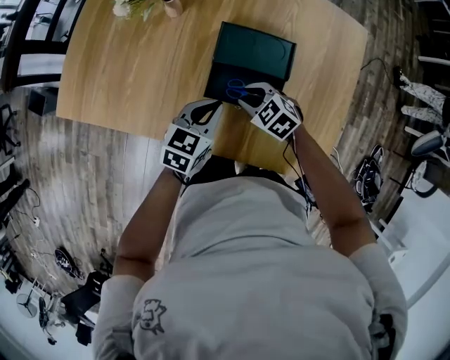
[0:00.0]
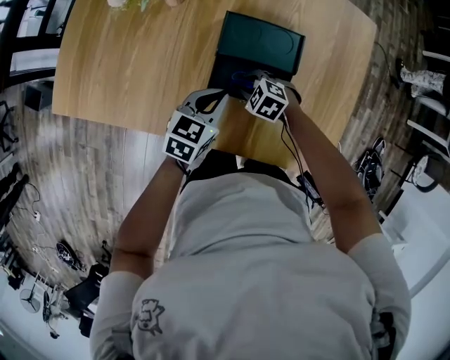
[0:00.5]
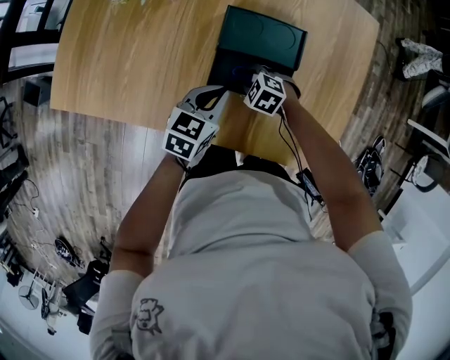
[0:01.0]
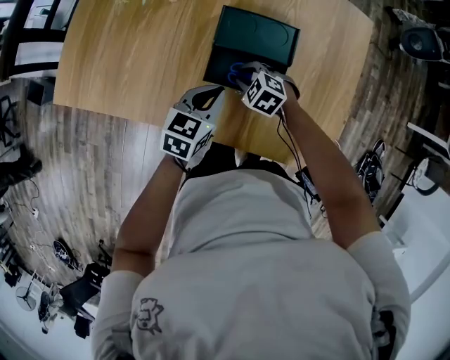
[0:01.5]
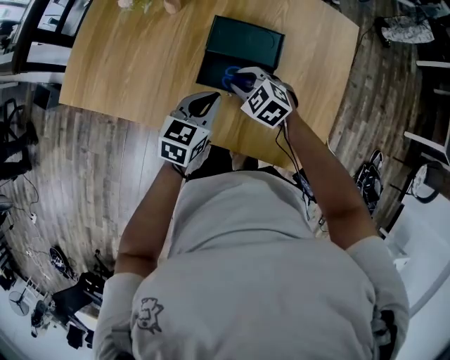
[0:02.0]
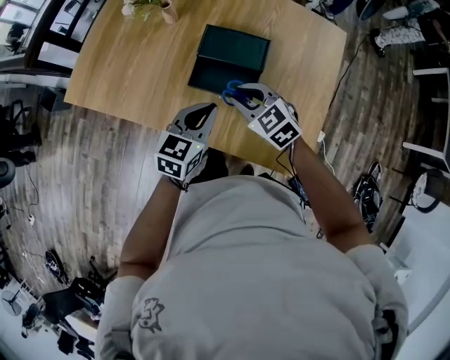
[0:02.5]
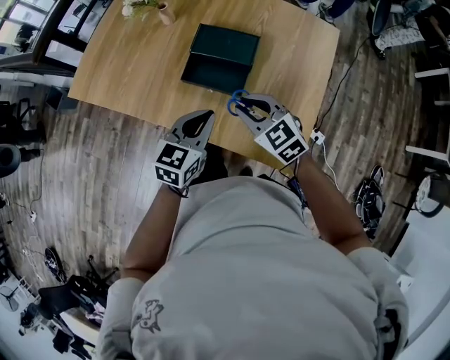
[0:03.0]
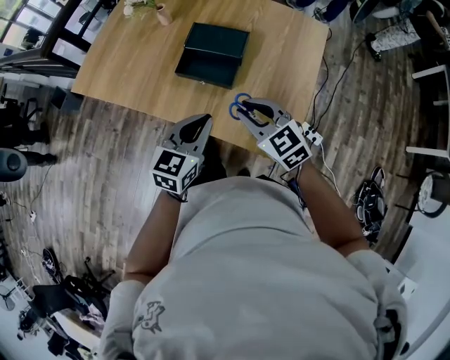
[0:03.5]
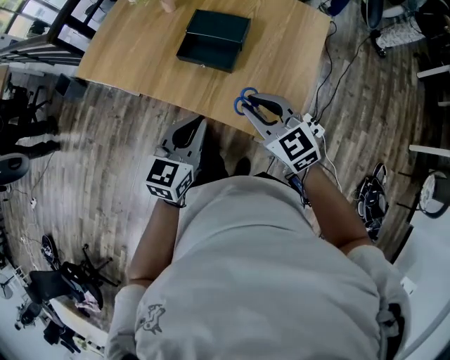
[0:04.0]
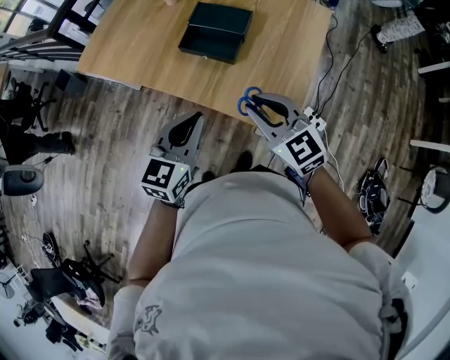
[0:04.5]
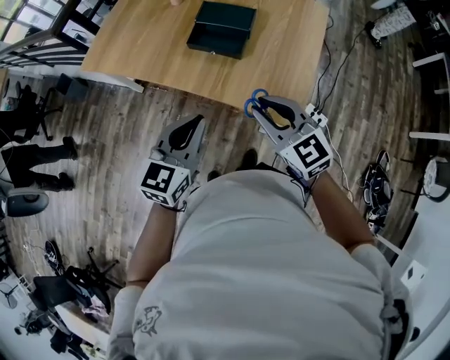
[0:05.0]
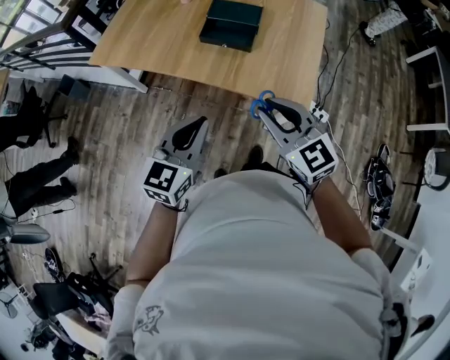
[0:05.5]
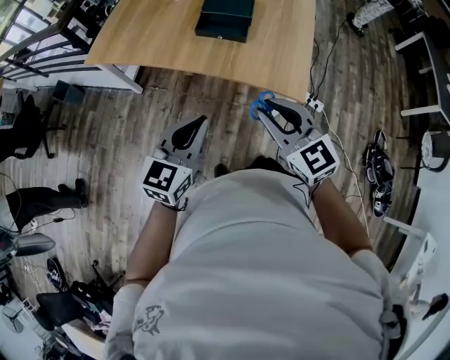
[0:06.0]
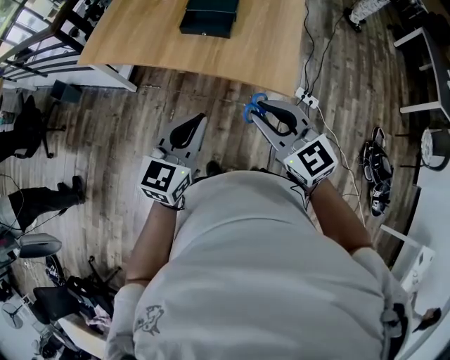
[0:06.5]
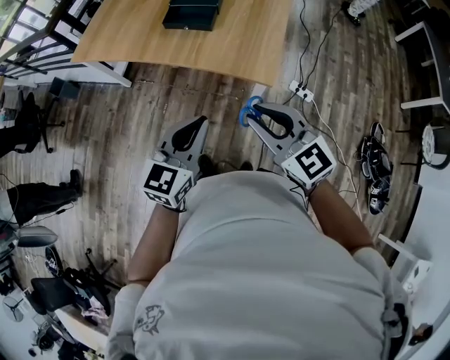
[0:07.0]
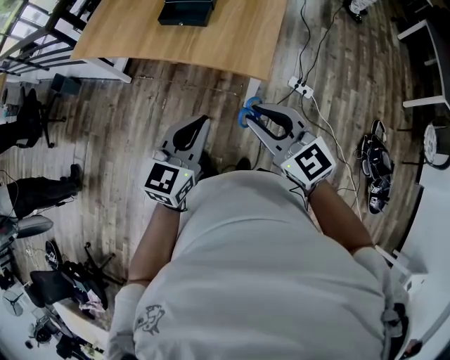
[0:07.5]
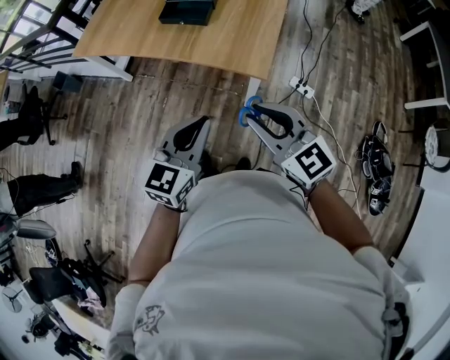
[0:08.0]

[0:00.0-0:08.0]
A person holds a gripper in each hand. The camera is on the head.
0:00.0 to 0:02.0: The right gripper goes downward and returns, some 10 cm each way.
0:02.0 to 0:04.0: The left gripper heads backward and upward, covering about 30 cm, while the right gripper is displaced backward, upward and to the right by about 35 cm, and rotates approximately 30 degrees.
0:04.0 to 0:06.0: The two grippers go about 25 cm backward and to the left.
0:06.0 to 0:08.0: Both grippers move to the right and backward, about 20 cm.

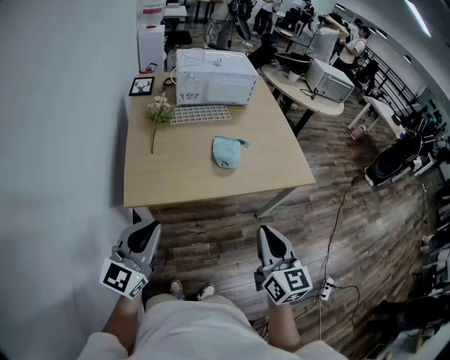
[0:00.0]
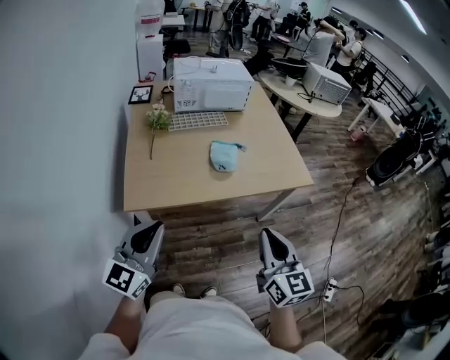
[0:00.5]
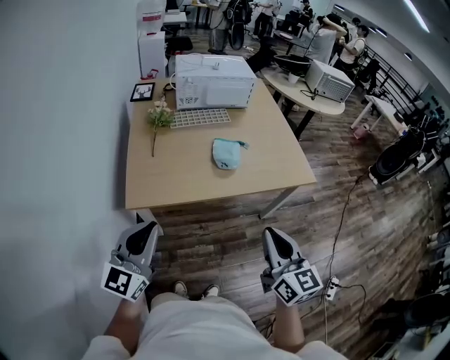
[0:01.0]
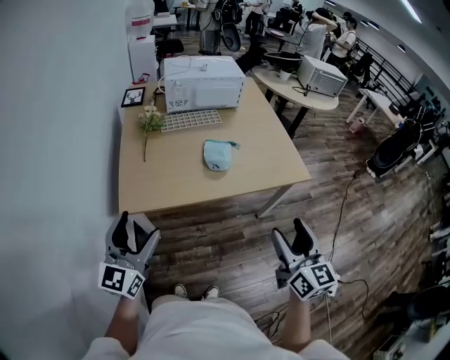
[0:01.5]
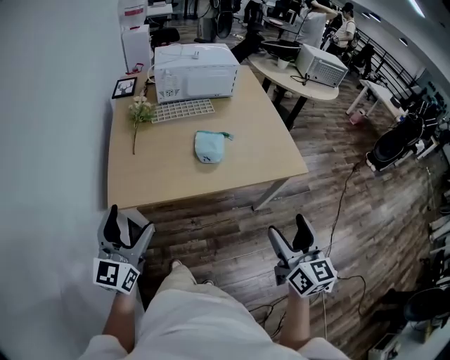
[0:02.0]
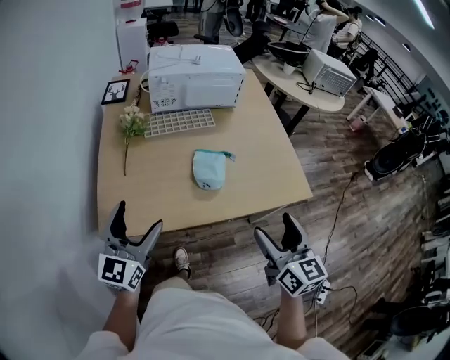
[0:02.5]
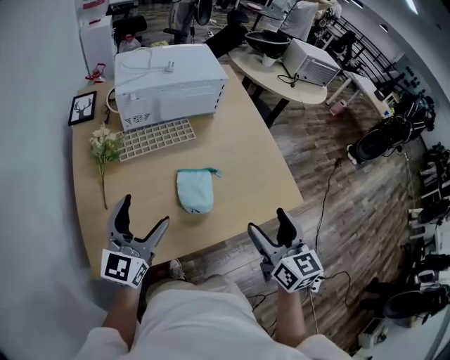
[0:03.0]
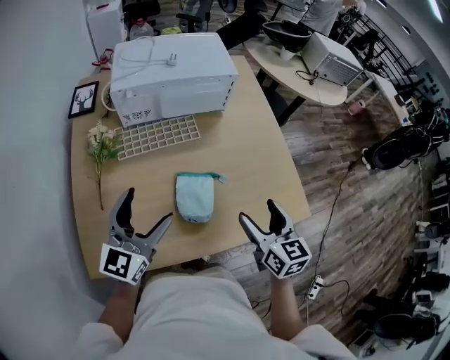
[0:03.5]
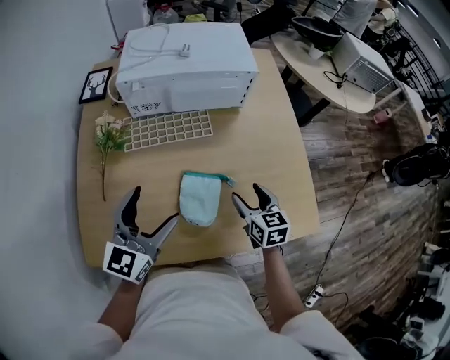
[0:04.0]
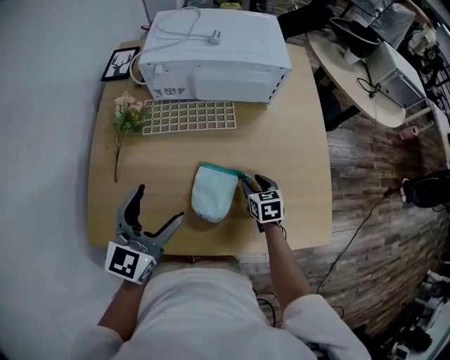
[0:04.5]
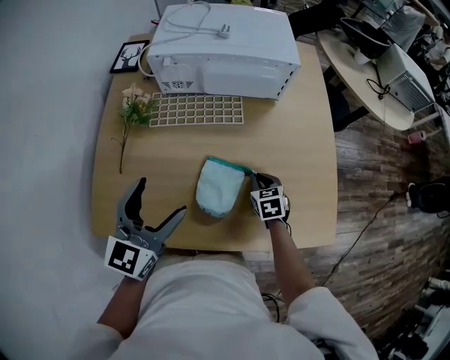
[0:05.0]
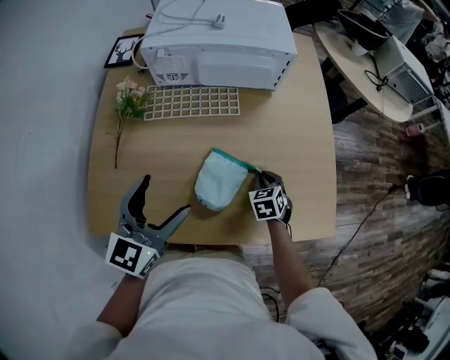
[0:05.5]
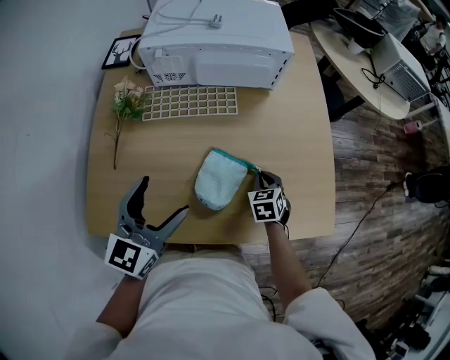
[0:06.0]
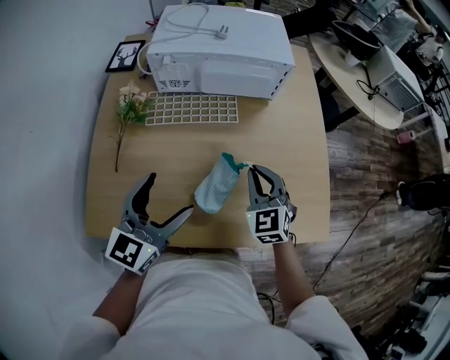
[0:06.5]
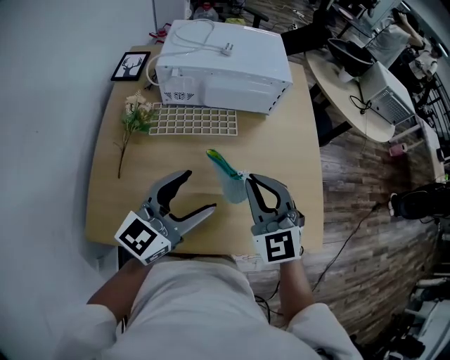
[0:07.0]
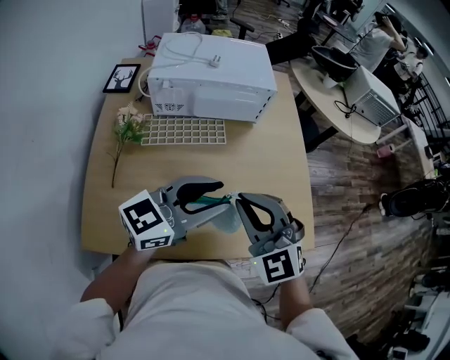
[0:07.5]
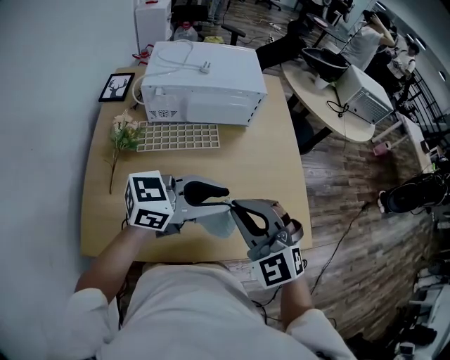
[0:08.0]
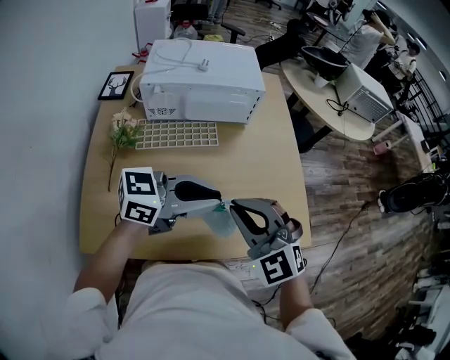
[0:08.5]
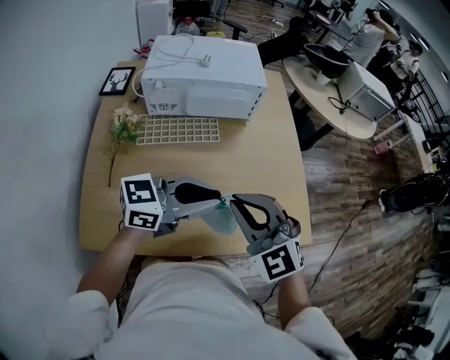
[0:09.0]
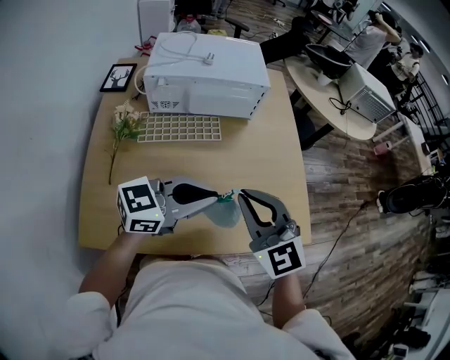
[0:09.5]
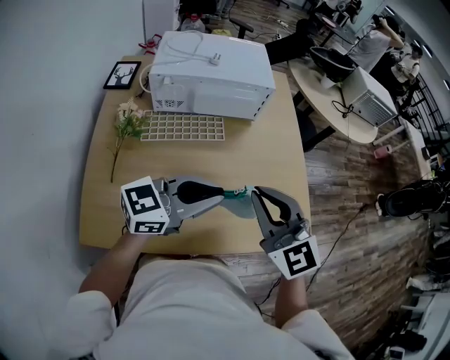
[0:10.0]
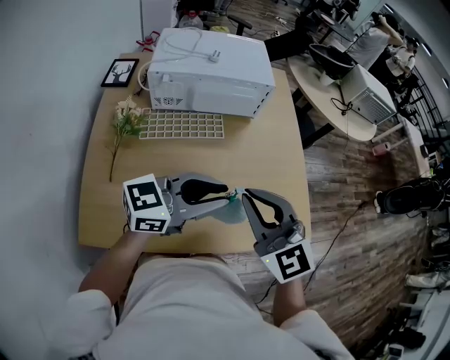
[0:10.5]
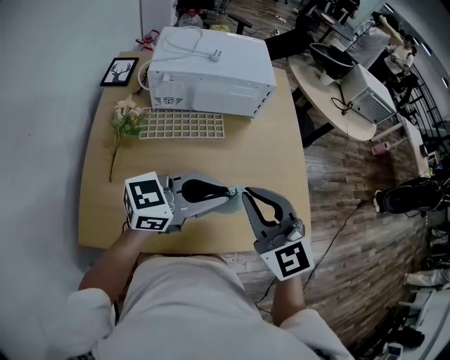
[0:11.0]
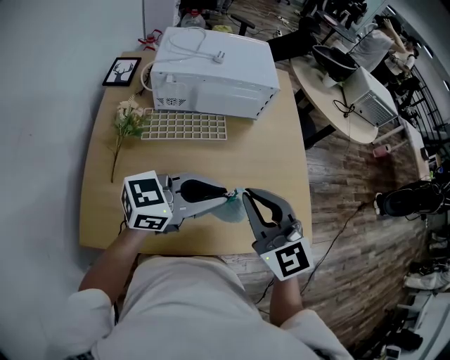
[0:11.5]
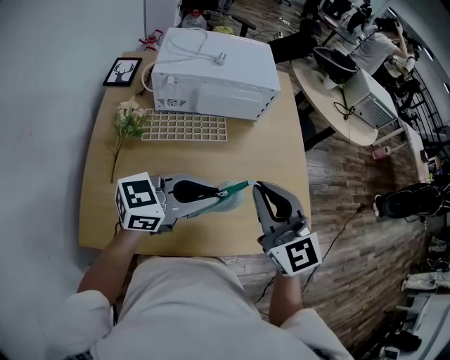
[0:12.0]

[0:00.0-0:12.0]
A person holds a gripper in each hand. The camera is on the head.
0:00.0 to 0:02.0: The right gripper goes some 15 cm to the right, and opens. The left gripper opens up.
0:02.0 to 0:04.0: The two grippers travel together, forward, about 40 cm. The right gripper shifts some 20 cm downward, and changes its angle by about 30 degrees.
0:04.0 to 0:06.0: The right gripper travels downward by about 10 cm, swivels about 30 degrees, and closes up.
0:06.0 to 0:08.0: The left gripper moves to the right and upward, approximately 15 cm, swivels approximately 60 degrees, and closes up, while the right gripper is displaced upward by approximately 30 cm, and swivels about 60 degrees.
0:08.0 to 0:10.0: The right gripper changes its angle by approximately 20 degrees.
0:10.0 to 0:12.0: The grippers move only a little.

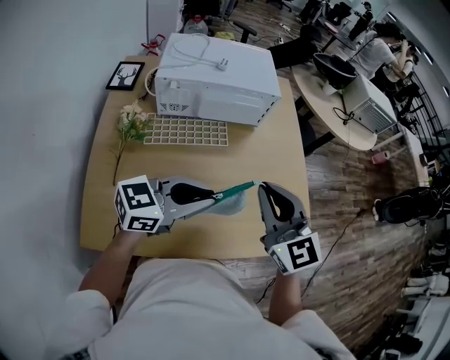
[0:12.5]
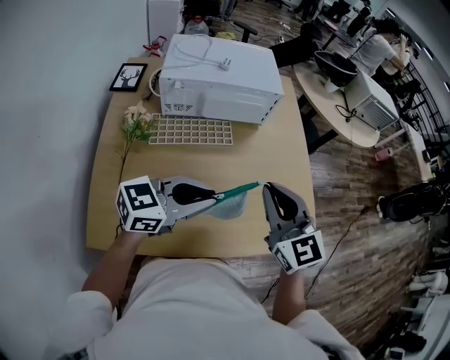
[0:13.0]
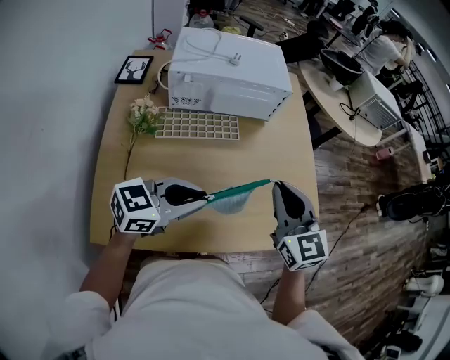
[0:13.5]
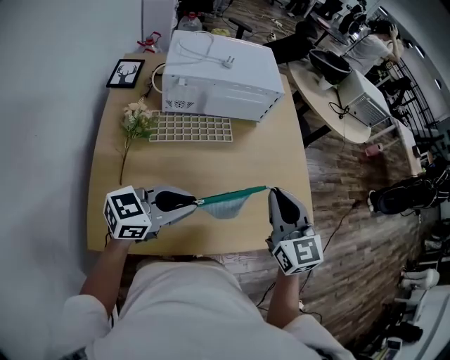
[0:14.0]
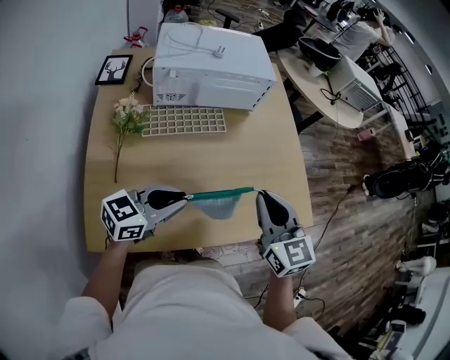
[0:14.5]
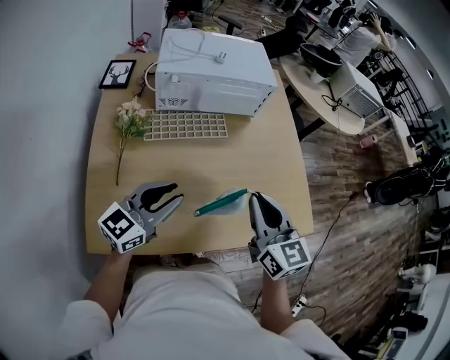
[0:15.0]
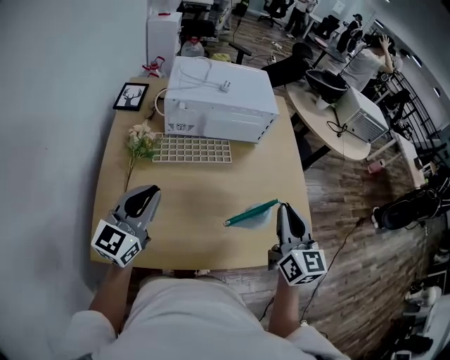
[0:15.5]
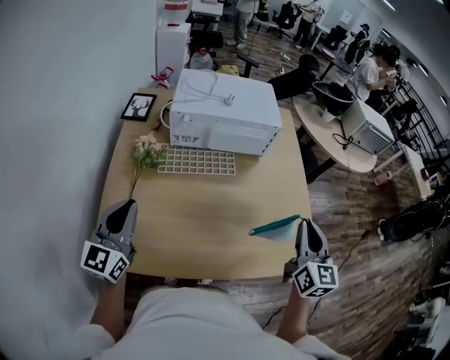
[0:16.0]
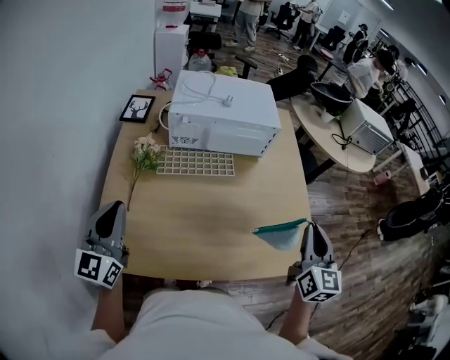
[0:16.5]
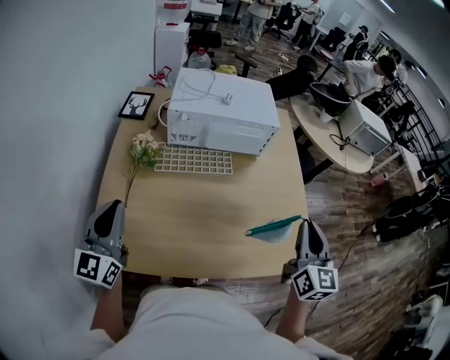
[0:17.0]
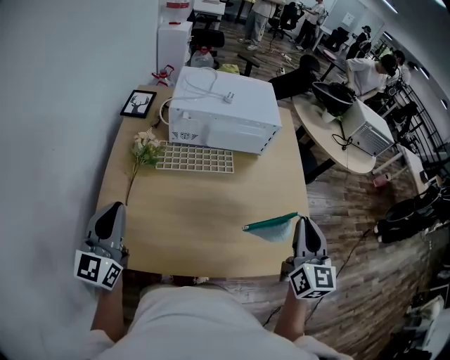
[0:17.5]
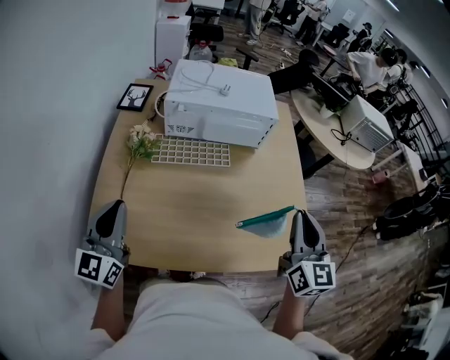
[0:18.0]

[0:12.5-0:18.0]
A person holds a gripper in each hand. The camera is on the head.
0:12.5 to 0:14.5: The right gripper goes some 5 cm backward and downward. Meanwhile the left gripper travels downward, to the left and backward by some 15 cm.
0:14.5 to 0:16.0: The left gripper shifts some 15 cm to the left and upward, and swivels some 60 degrees. The right gripper shifts about 15 cm to the right and forward.
0:16.0 to 0:18.0: The grippers stay close to where they were, moving slightly.

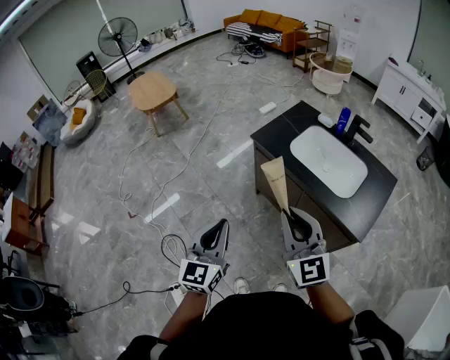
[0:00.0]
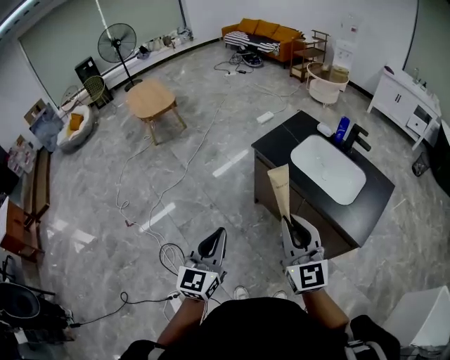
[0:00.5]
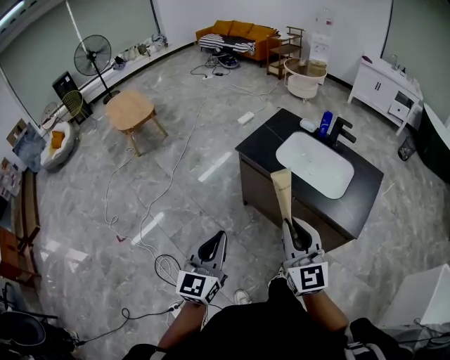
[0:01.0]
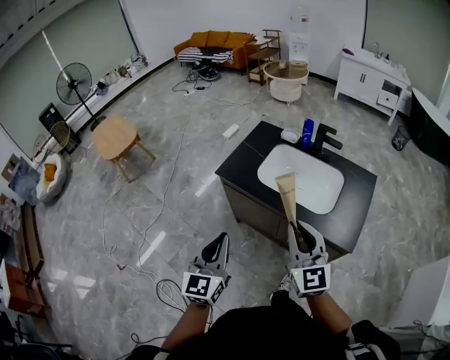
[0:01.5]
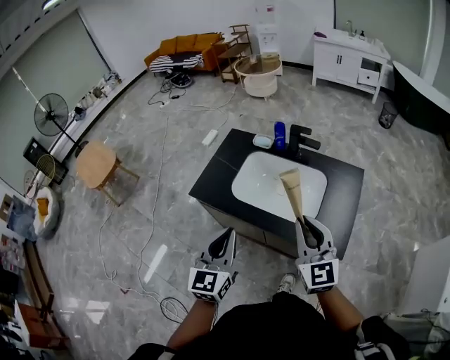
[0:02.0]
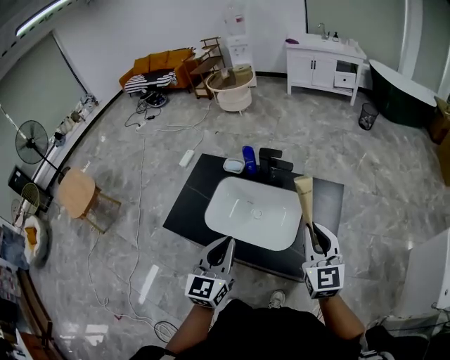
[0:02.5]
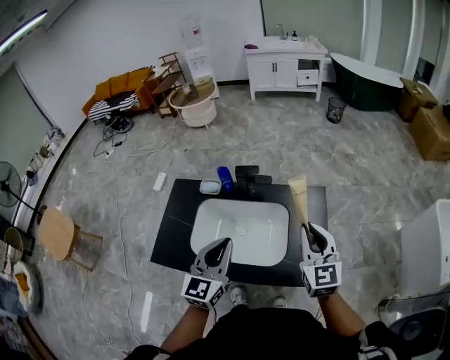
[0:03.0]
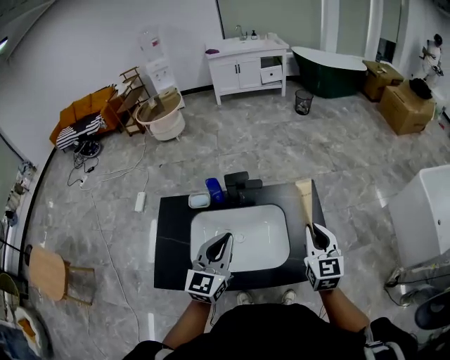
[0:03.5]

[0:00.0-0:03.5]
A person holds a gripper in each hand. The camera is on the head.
0:00.0 to 0:02.0: The left gripper ends up about 30 cm from where it was, and rotates about 20 degrees, while the right gripper changes place by approximately 30 cm, and changes its angle by about 30 degrees.
0:02.0 to 0:03.5: The right gripper changes place by approximately 20 cm, and swivels about 40 degrees. Meanwhile the left gripper changes place by roughly 25 cm, and rotates roughly 30 degrees.
